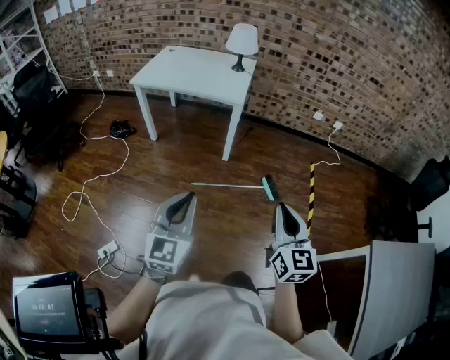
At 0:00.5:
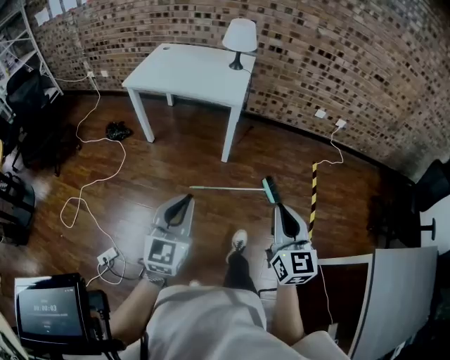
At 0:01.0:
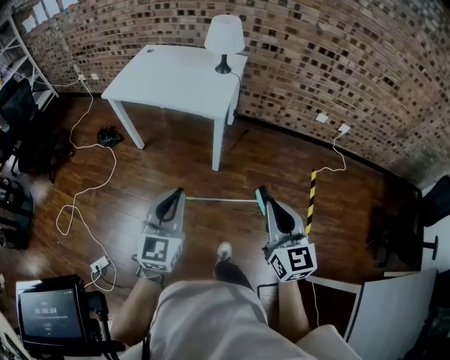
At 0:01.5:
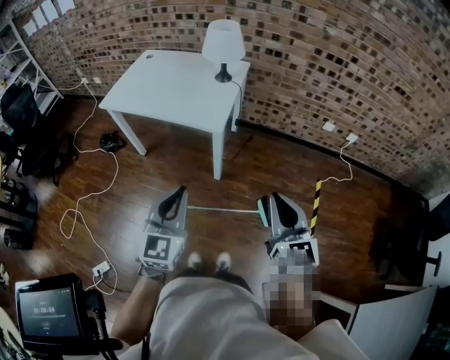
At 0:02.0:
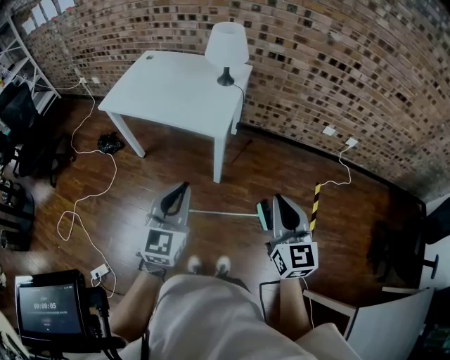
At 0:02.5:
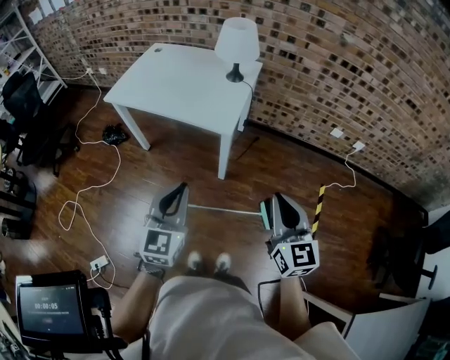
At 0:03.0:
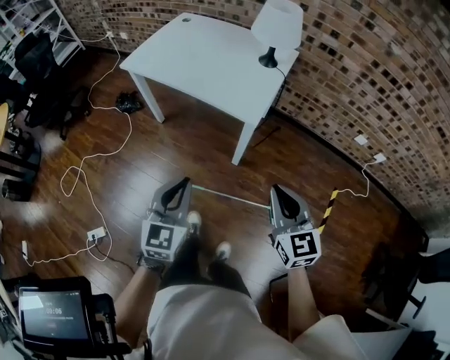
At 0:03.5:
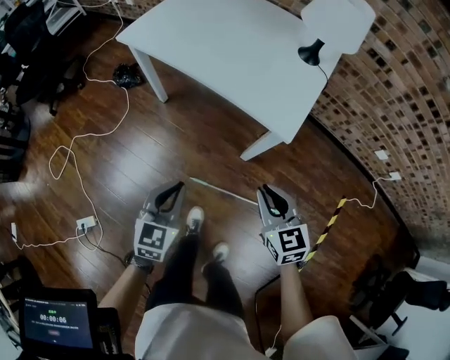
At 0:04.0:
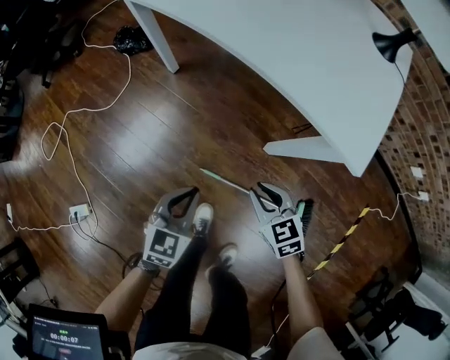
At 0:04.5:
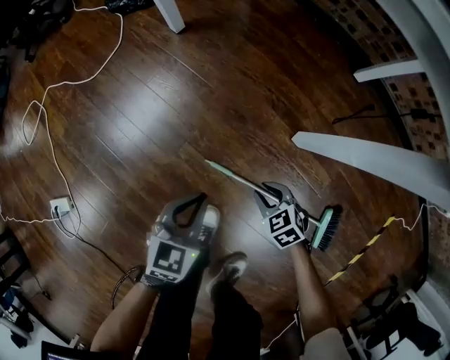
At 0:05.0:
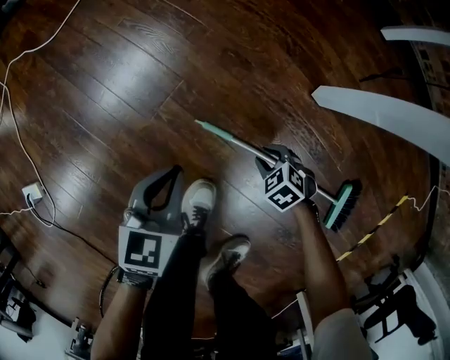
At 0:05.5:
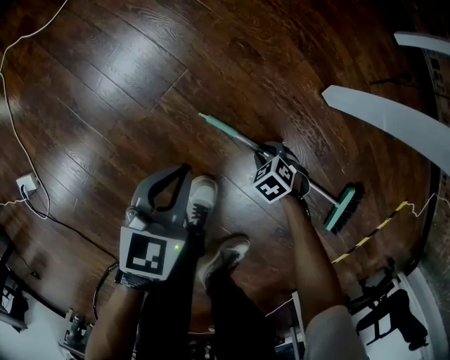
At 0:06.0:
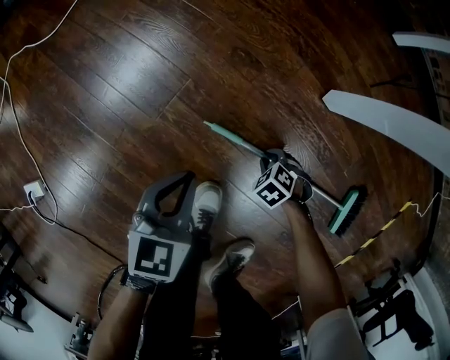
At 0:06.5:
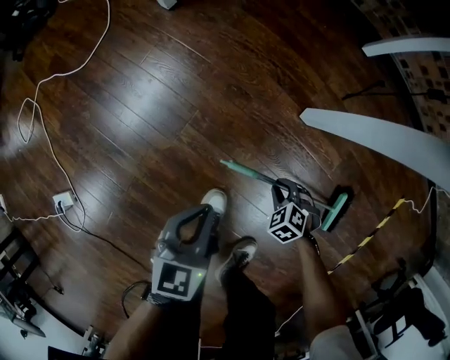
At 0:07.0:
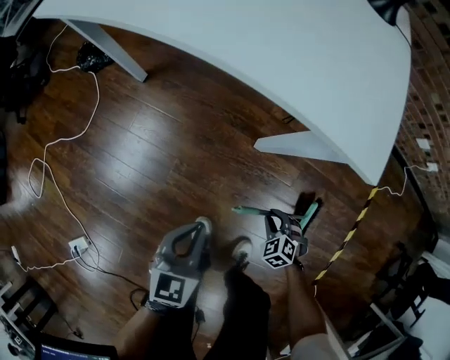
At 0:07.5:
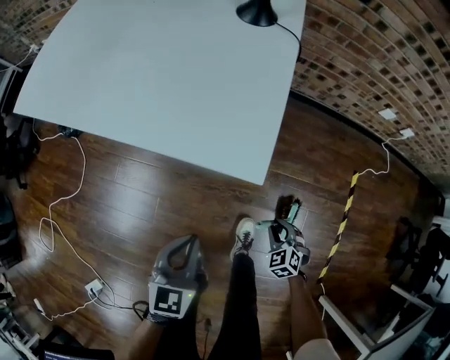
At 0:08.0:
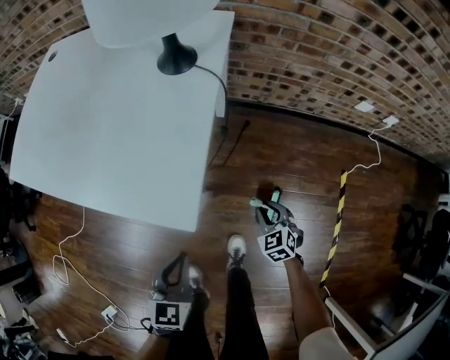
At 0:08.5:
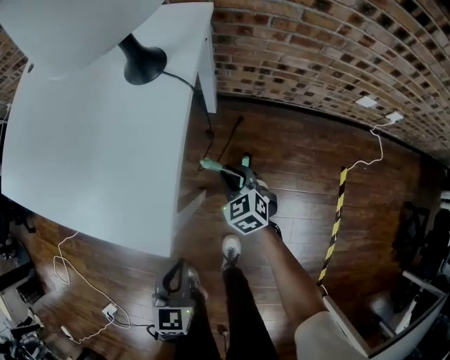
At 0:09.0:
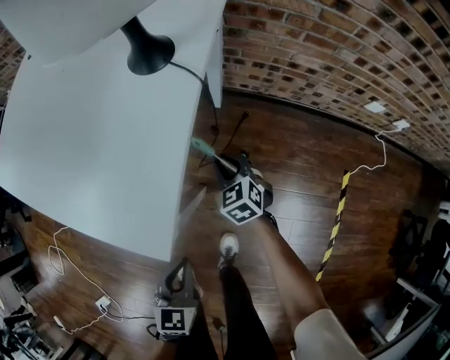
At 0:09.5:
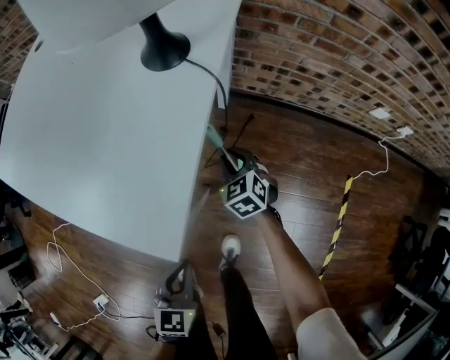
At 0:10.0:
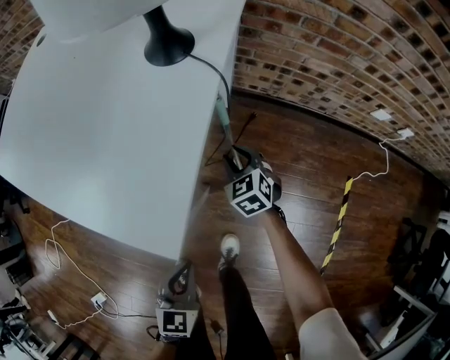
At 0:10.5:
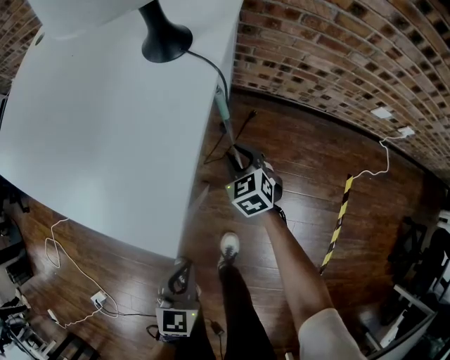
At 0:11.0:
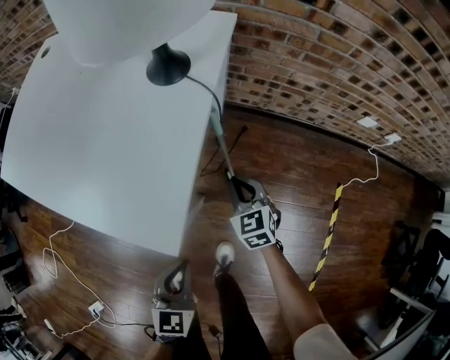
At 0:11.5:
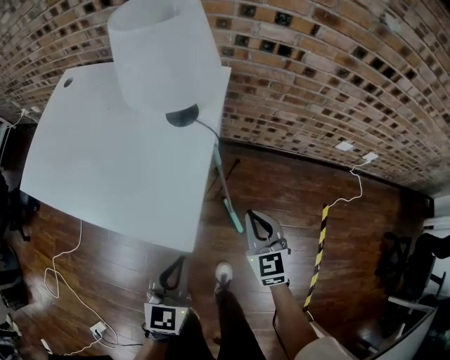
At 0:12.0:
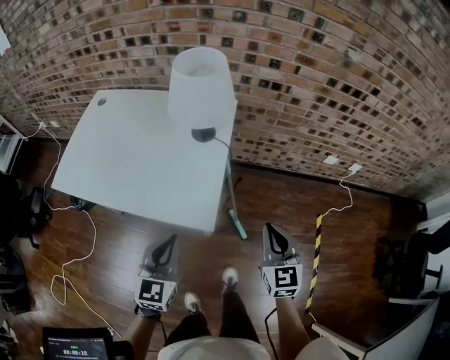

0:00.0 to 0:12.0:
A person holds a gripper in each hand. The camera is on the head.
0:00.0 to 0:02.0: The two grippers go approximately 35 cm forward.
0:02.0 to 0:04.0: The grippers both shift downward by roughly 50 cm. The left gripper turns by approximately 30 degrees. Meanwhile the right gripper angles its fingers downward, by roughly 30 degrees.
0:04.0 to 0:06.0: The right gripper heads downward, covering some 60 cm, and points its fingers about 40 degrees further downward, while the left gripper shifts approximately 35 cm downward.
0:06.0 to 0:08.0: The two grippers go approximately 50 cm upward. The right gripper tilts its fingers roughly 30 degrees upward, while the left gripper swivels approximately 20 degrees.
0:08.0 to 0:10.0: The right gripper shifts about 20 cm forward. Meanwhile the left gripper moves downward, about 5 cm.
0:10.0 to 0:12.0: The left gripper goes some 30 cm upward, and turns by some 30 degrees. The right gripper heads upward and backward, covering about 50 cm, swivels approximately 40 degrees, and closes its fingers.

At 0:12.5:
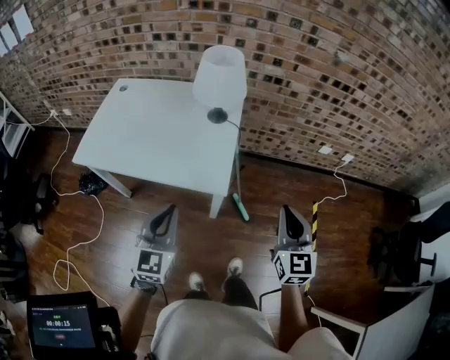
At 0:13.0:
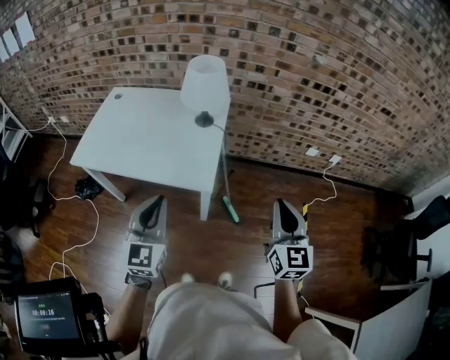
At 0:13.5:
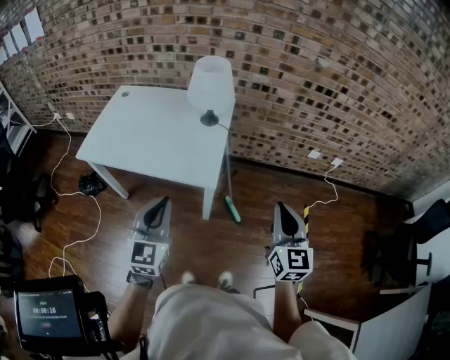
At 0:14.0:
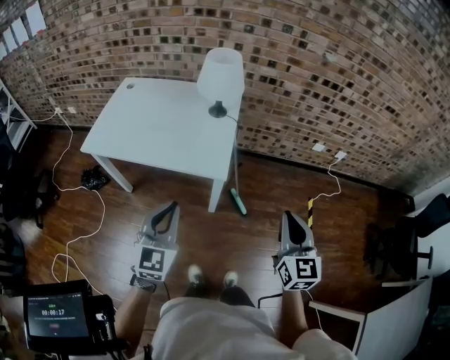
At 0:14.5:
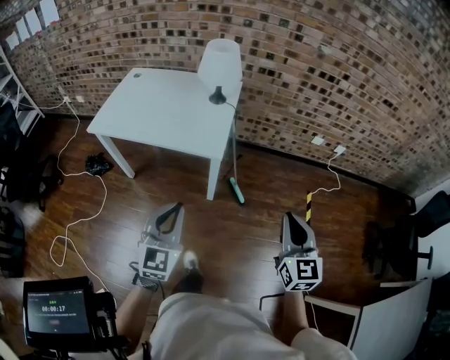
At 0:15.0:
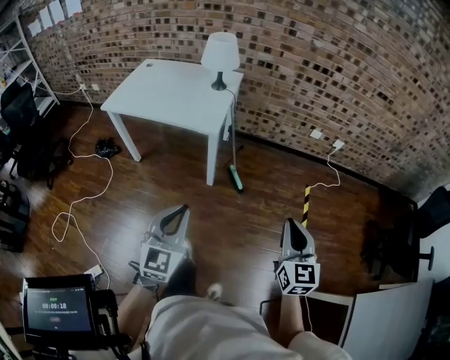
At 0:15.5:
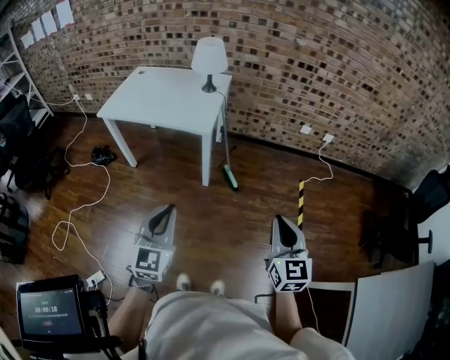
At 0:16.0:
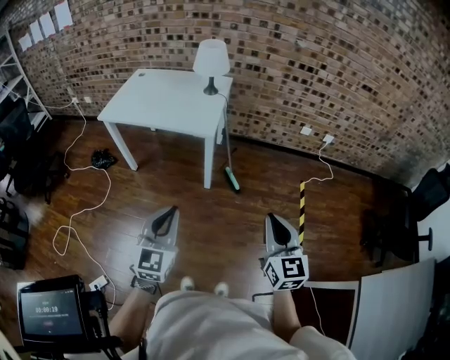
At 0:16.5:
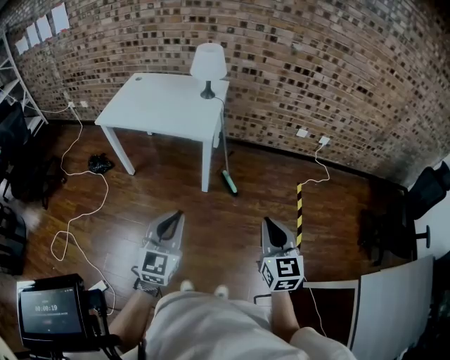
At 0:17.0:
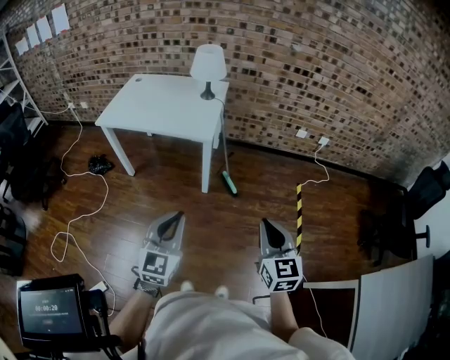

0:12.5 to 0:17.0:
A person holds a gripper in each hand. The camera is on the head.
0:12.5 to 0:14.5: The grippers both shift backward by approximately 20 cm.
0:14.5 to 0:17.0: The grippers both shift backward by roughly 20 cm.

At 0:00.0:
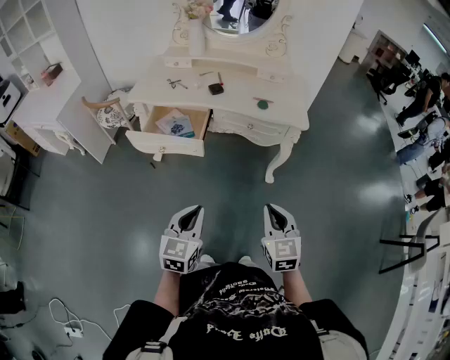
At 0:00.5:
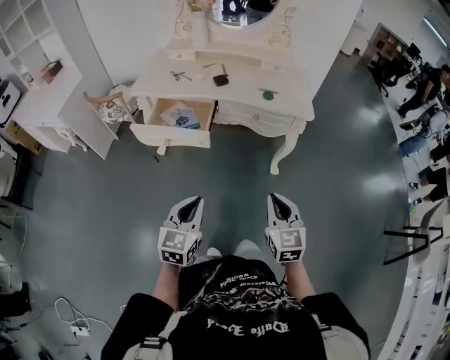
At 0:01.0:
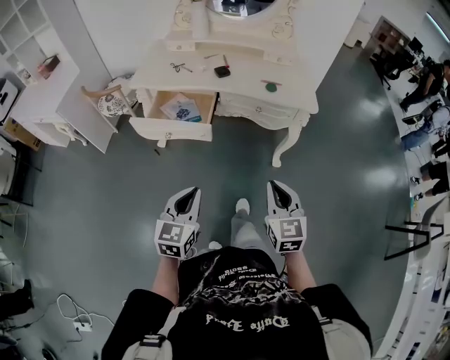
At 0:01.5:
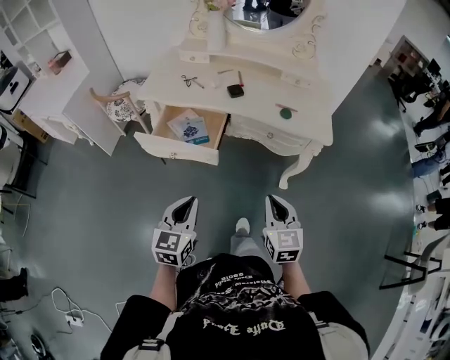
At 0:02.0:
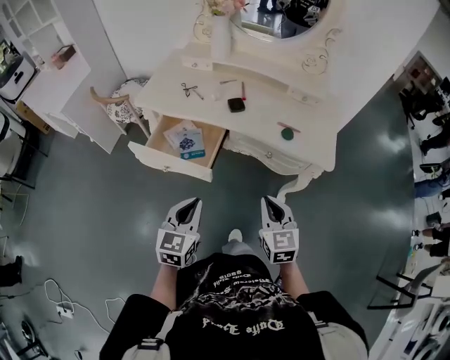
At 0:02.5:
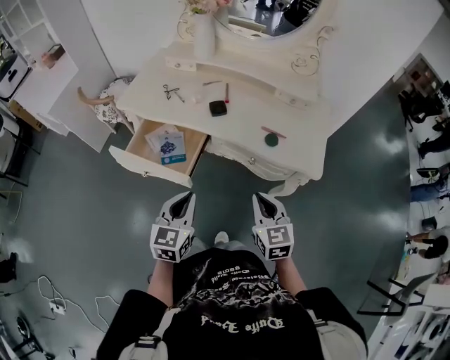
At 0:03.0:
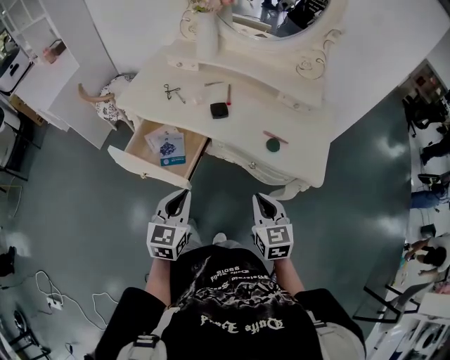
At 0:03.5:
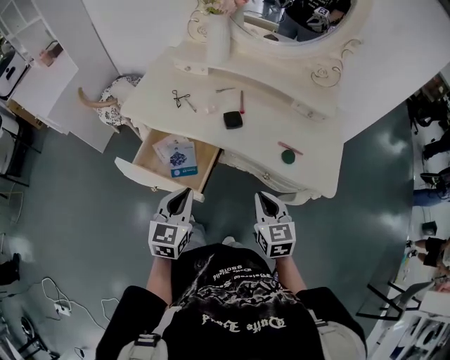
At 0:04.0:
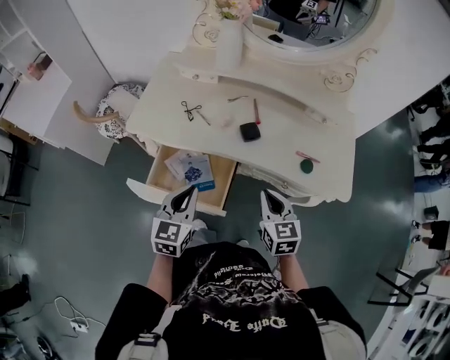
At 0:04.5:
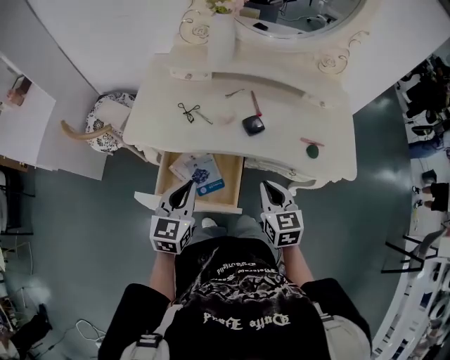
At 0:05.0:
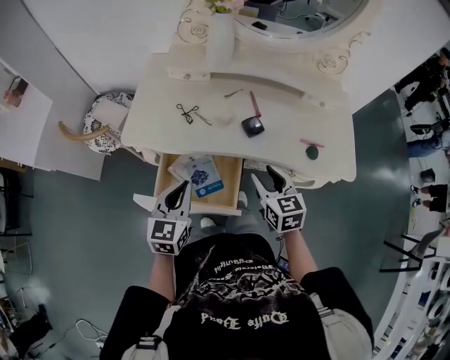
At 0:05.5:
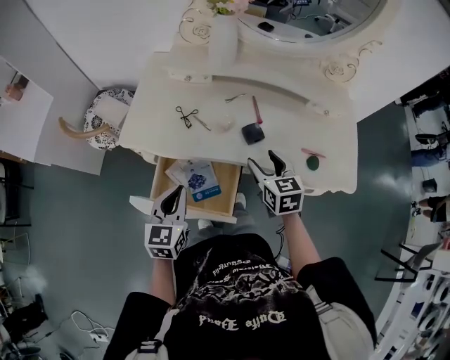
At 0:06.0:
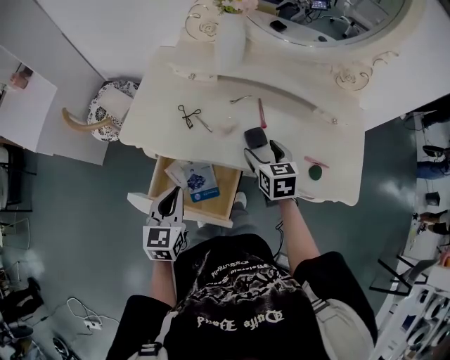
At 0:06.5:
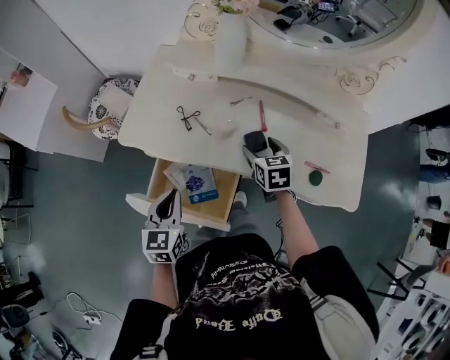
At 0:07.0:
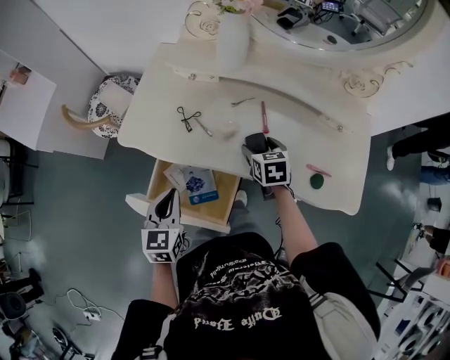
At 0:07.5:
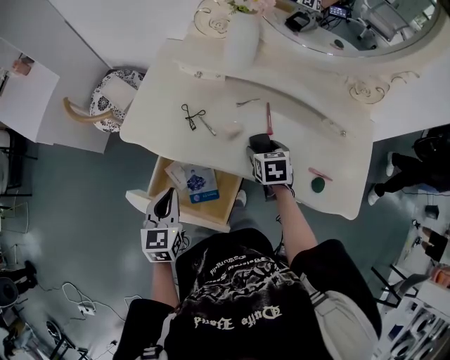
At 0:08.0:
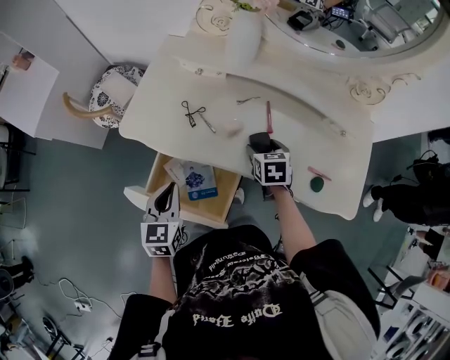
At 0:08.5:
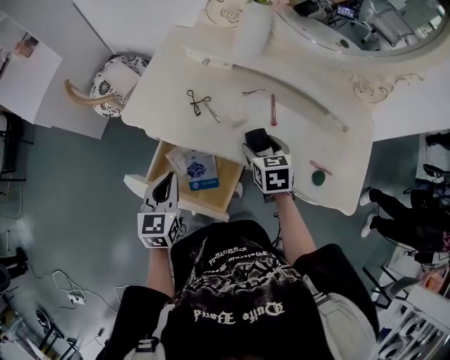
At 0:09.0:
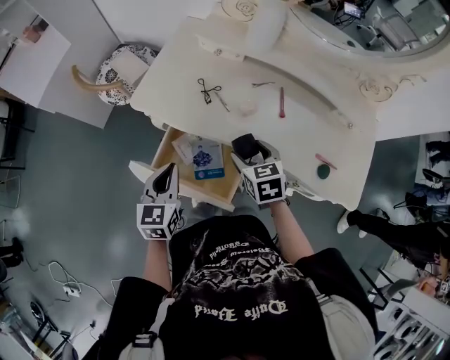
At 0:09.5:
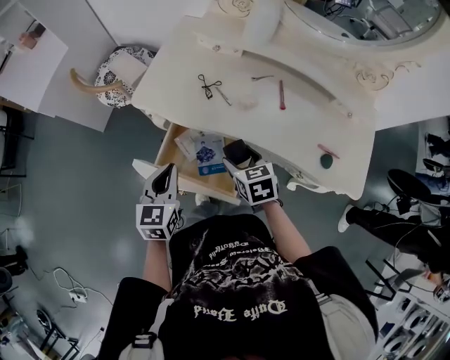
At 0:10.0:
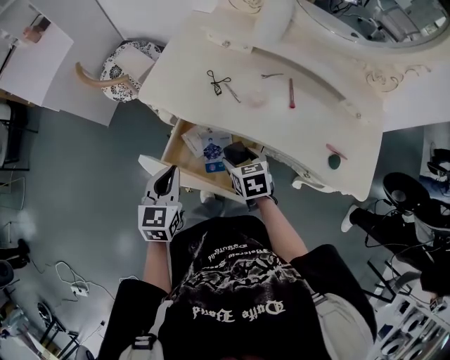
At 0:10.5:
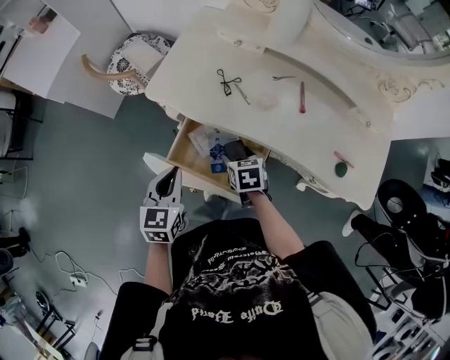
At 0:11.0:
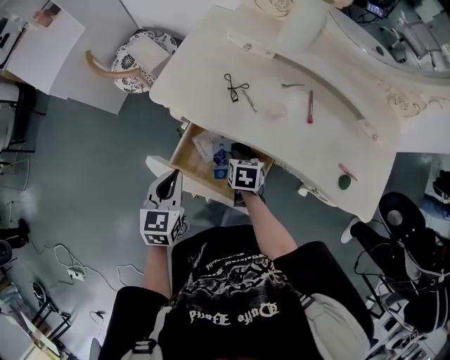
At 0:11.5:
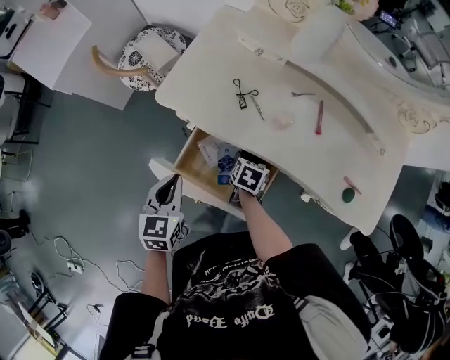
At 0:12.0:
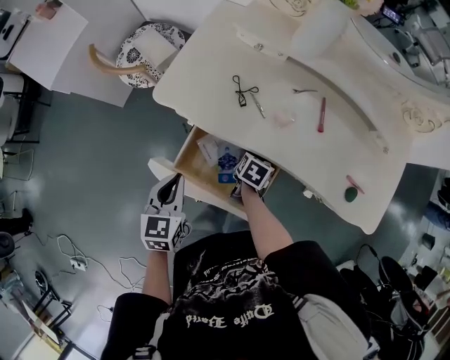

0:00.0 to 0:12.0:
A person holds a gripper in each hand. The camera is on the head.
0:00.0 to 0:02.0: The grippers both shift forward by some 20 cm.
0:02.0 to 0:04.0: Both grippers travel together forward, approximately 20 cm.
0:04.0 to 0:06.0: The right gripper moves forward, about 20 cm, and opens its fingers. Meanwhile the left gripper shifts about 5 cm to the left.
0:06.0 to 0:08.0: The right gripper goes about 5 cm downward.
0:08.0 to 0:10.0: The left gripper moves to the left, about 5 cm, while the right gripper goes some 20 cm to the left and backward.
0:10.0 to 0:12.0: The right gripper goes roughly 10 cm downward and forward, and changes its angle by approximately 40 degrees.
